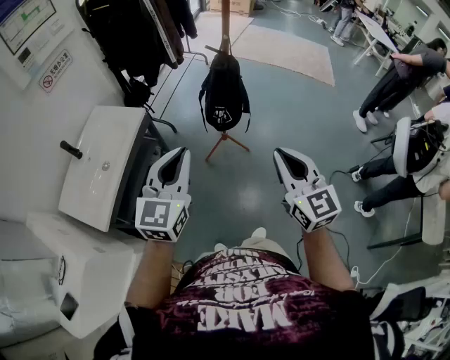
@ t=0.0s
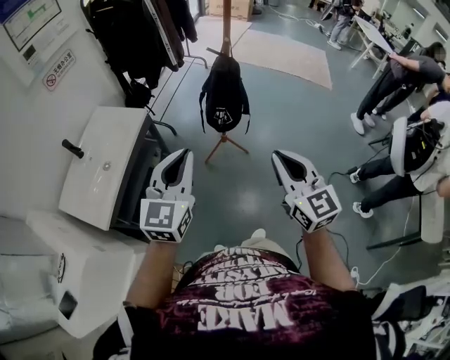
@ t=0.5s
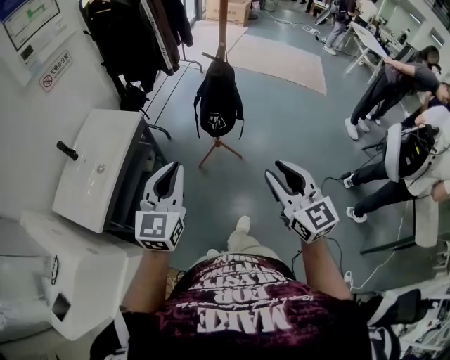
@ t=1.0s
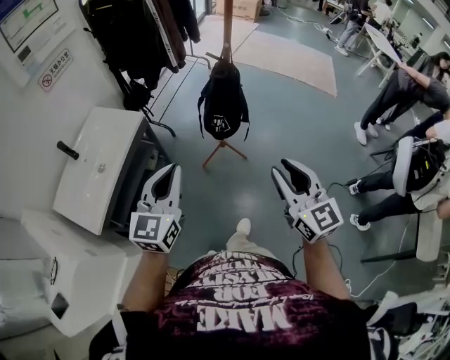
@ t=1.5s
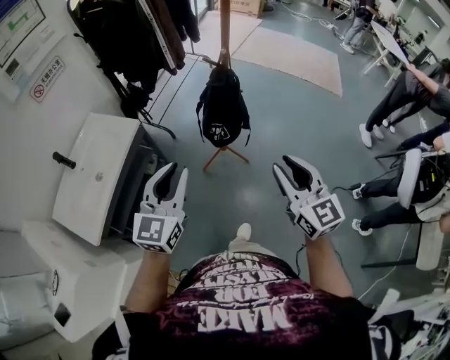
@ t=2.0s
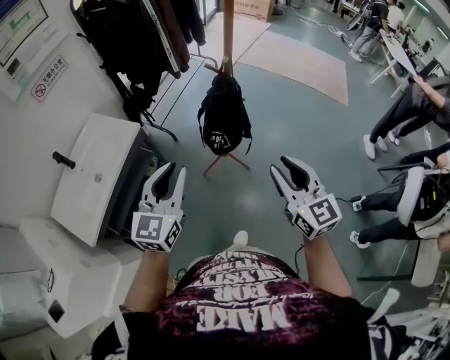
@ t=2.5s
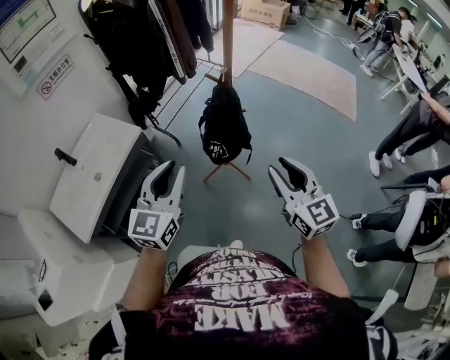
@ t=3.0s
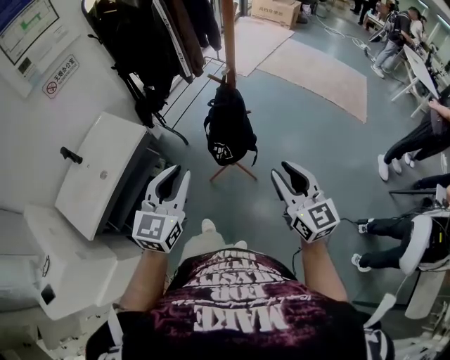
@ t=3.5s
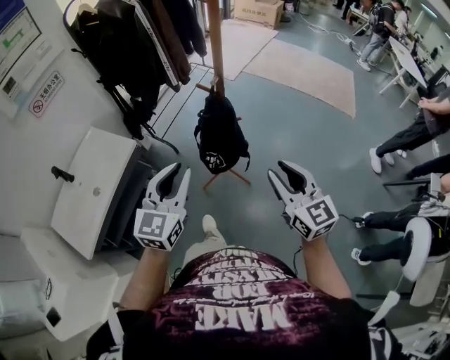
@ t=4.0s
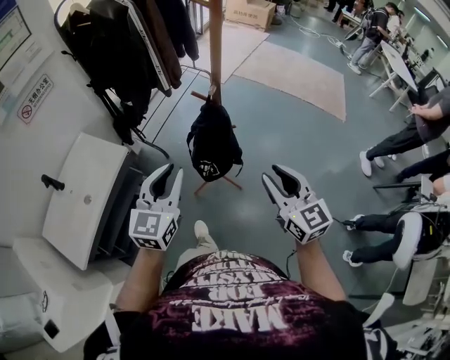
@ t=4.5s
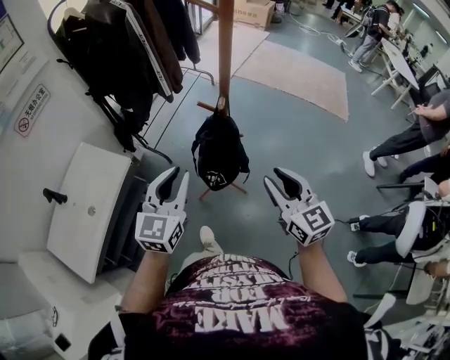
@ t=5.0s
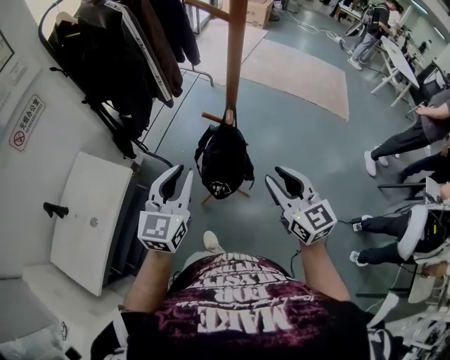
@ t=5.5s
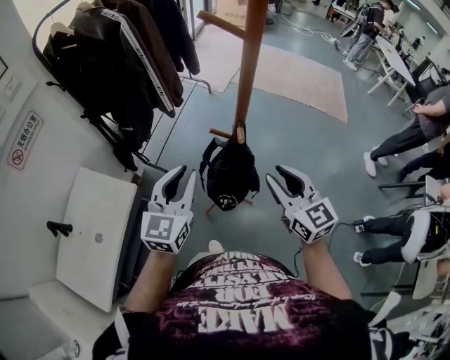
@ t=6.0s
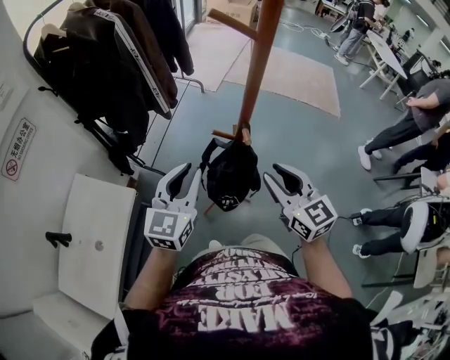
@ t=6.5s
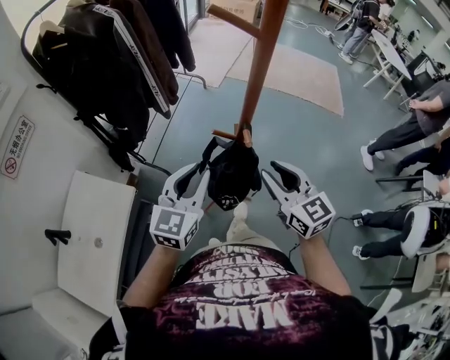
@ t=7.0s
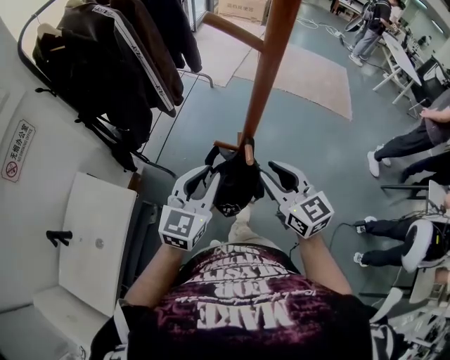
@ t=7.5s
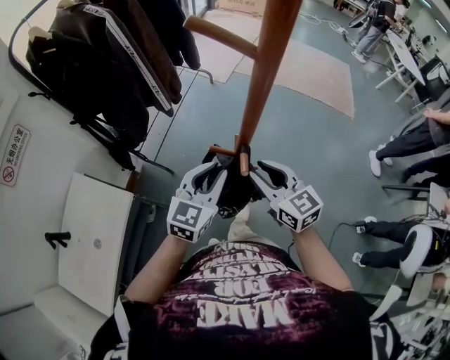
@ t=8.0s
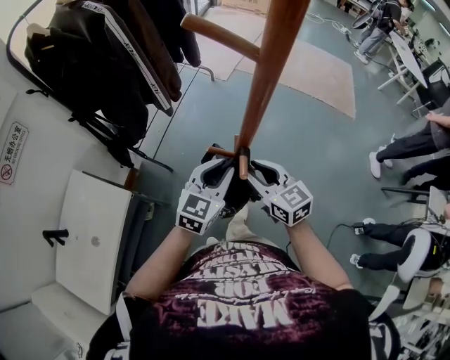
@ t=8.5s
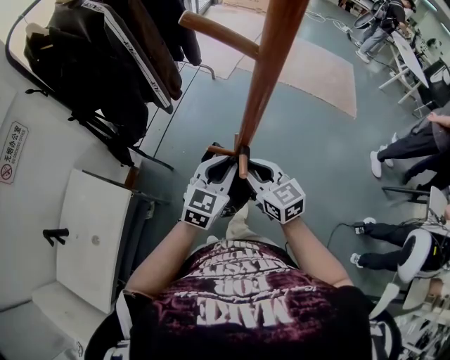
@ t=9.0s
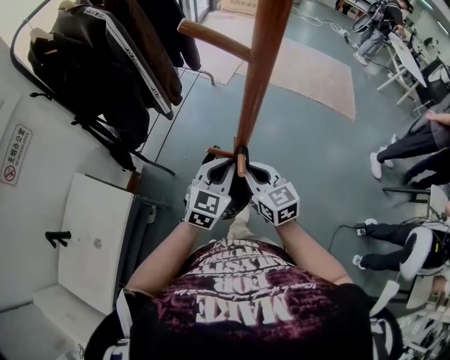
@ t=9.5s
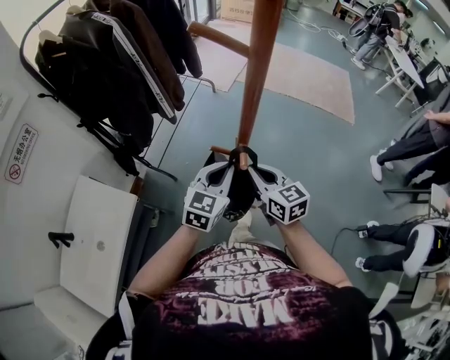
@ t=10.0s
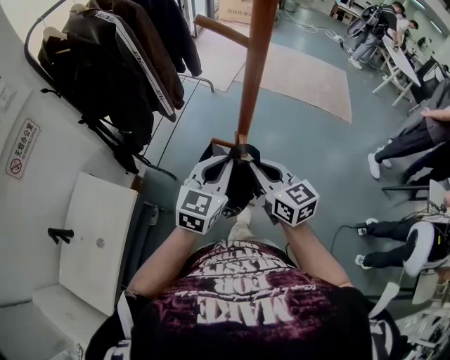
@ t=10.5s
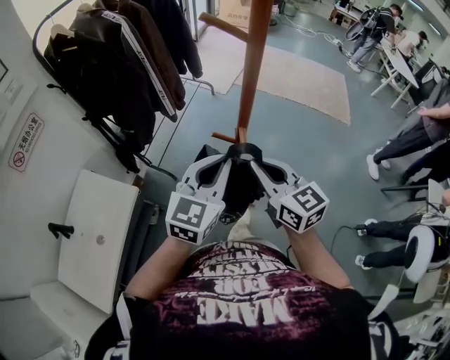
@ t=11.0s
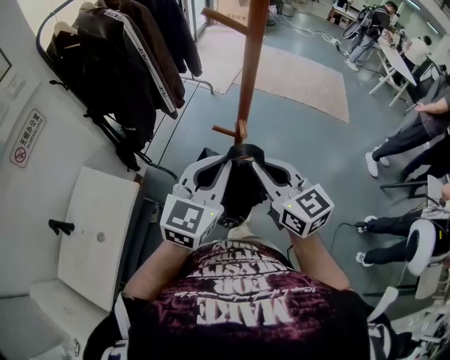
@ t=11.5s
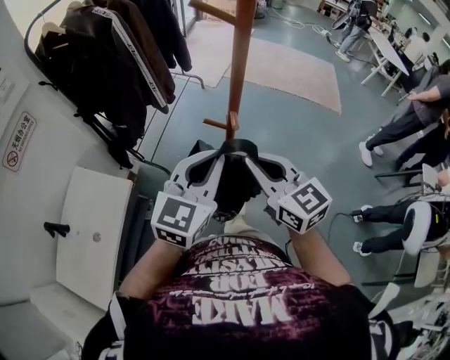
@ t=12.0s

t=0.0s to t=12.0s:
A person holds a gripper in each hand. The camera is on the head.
t=0.0s to t=2.0s: The right gripper shifts approximately 10 cm forward and to the right, and opens its fingers; the left gripper is displaced forward by approximately 10 cm.
t=2.0s to t=4.0s: The two grippers go approximately 15 cm forward and to the right.
t=4.0s to t=6.0s: The left gripper goes approximately 20 cm forward; the right gripper is displaced forward and to the left by some 20 cm.
t=6.0s to t=8.0s: The left gripper travels forward, to the right and downward by roughly 15 cm. The right gripper moves forward and downward, roughly 10 cm.
t=8.0s to t=10.0s: The right gripper closes its fingers.
t=10.0s to t=12.0s: The two grippers go some 20 cm upward and backward.

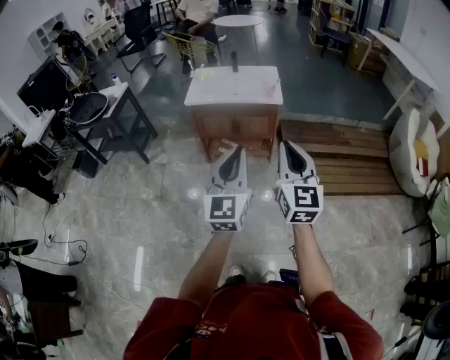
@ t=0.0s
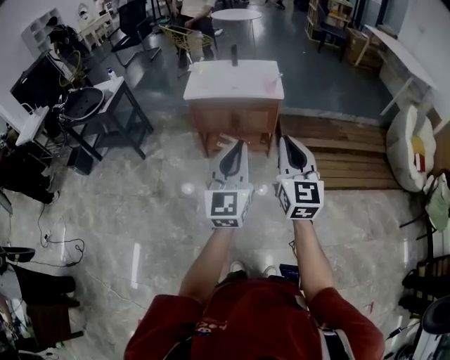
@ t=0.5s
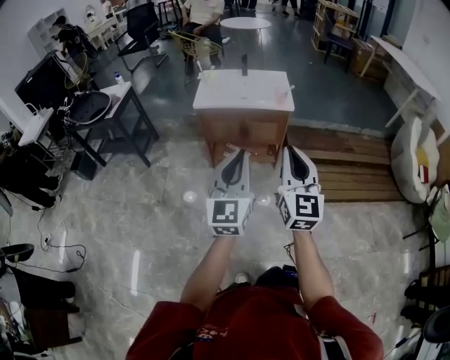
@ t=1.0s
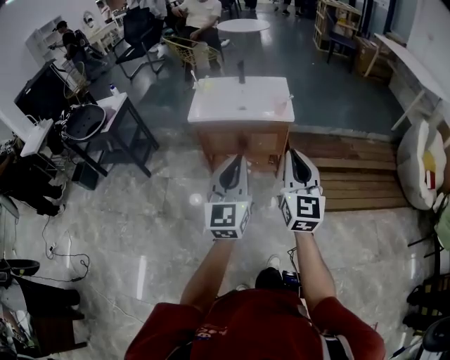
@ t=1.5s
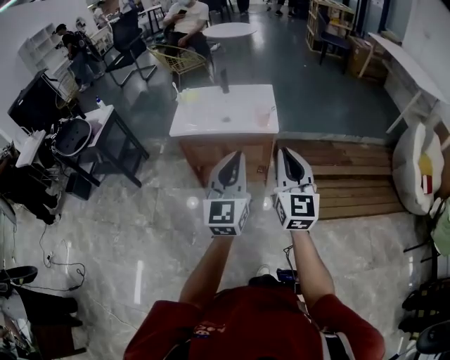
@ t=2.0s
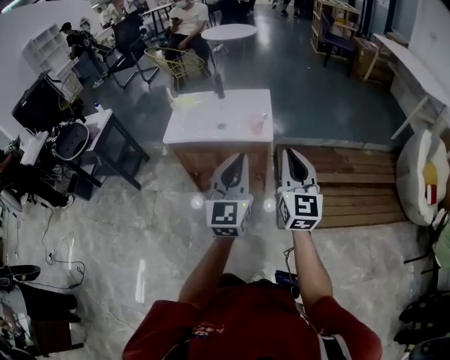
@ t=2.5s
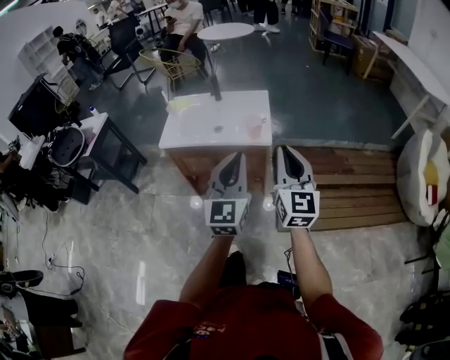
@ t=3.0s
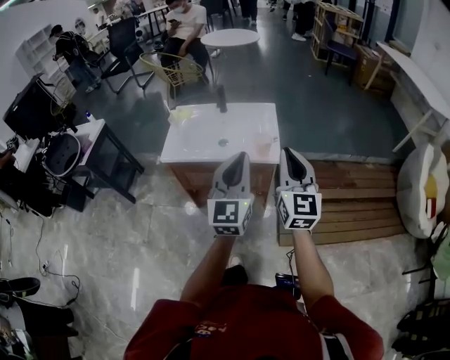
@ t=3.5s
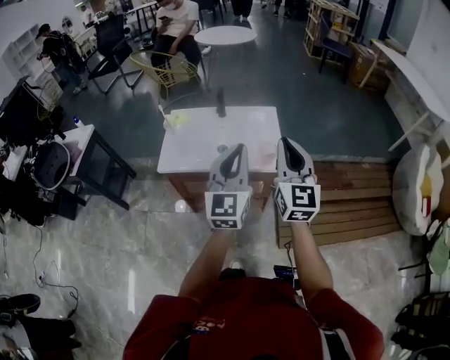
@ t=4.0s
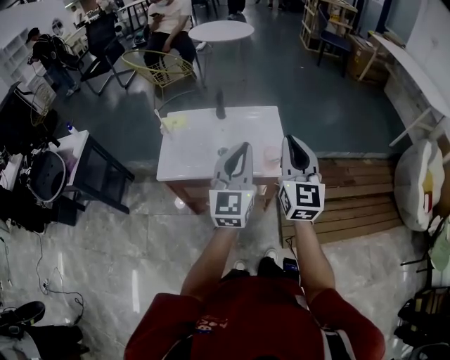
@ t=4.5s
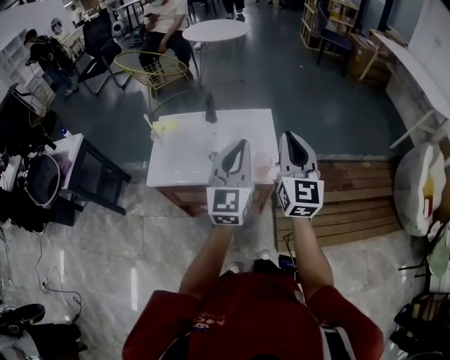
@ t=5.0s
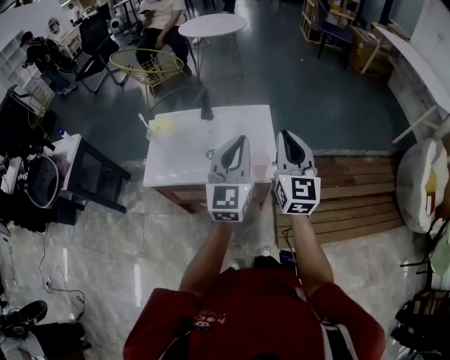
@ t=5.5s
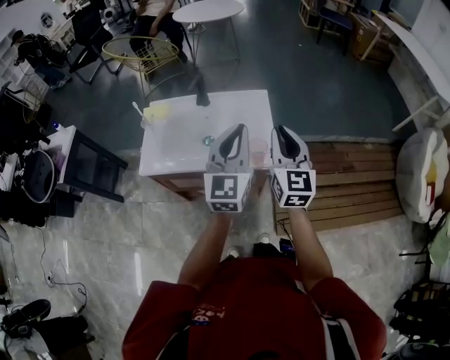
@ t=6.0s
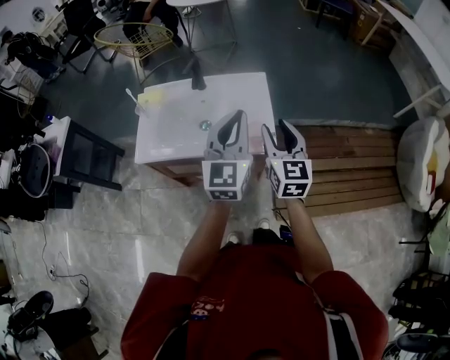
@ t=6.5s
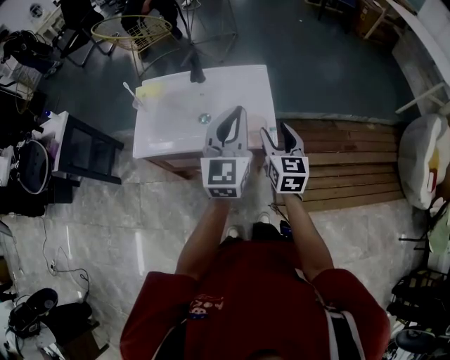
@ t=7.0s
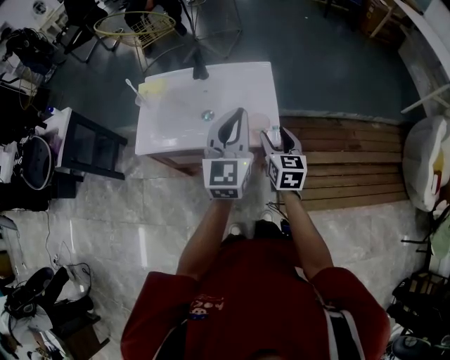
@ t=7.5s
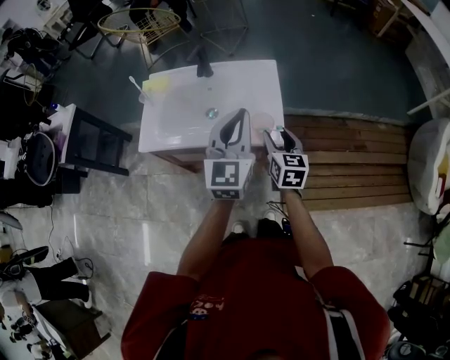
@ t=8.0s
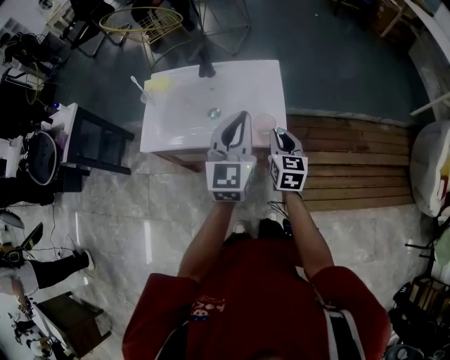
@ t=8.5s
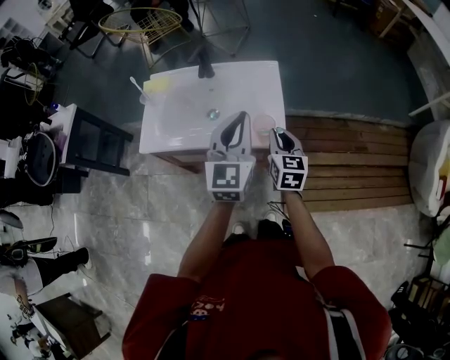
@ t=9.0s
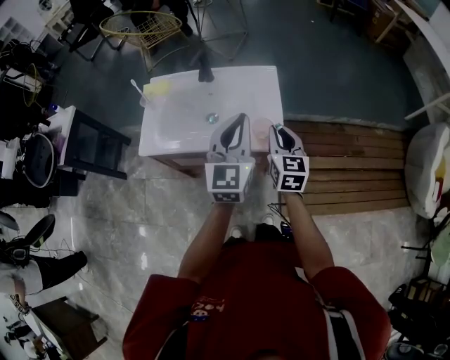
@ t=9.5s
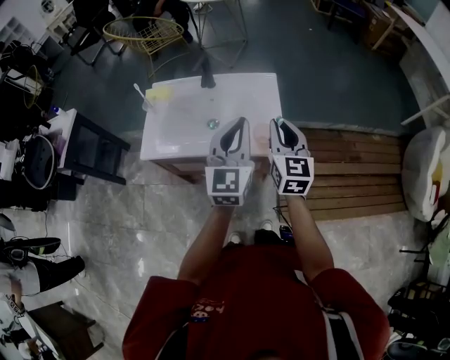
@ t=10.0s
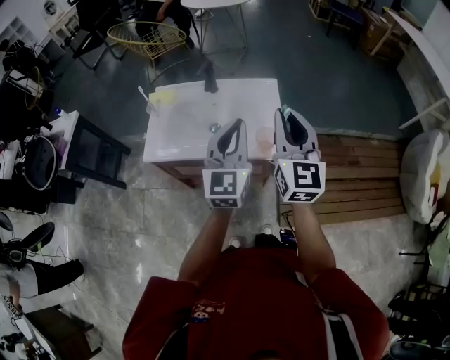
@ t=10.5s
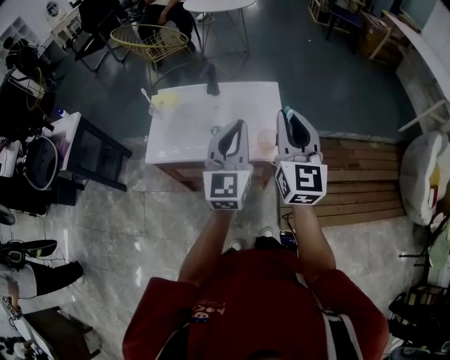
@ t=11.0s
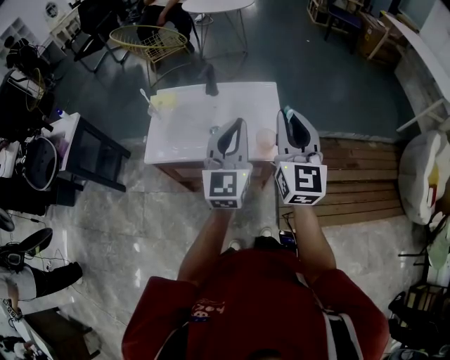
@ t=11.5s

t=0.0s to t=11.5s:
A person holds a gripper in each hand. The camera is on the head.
t=0.0s to t=2.0s: Both grippers travel together forward, approximately 20 cm.
t=2.0s to t=4.0s: The grippers both shift forward by some 25 cm.
t=4.0s to t=6.0s: The right gripper is displaced forward and downward by roughly 15 cm, while the left gripper goes about 15 cm forward and to the right.
t=6.0s to t=7.5s: The right gripper is displaced downward by roughly 15 cm, turns by some 20 degrees, and opens.
t=7.5s to t=9.5s: The right gripper closes.
t=9.5s to t=11.5s: The right gripper shifts about 20 cm upward, and swivels some 30 degrees; the left gripper heads upward, covering approximately 5 cm.

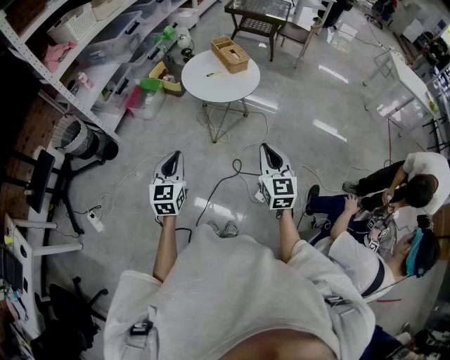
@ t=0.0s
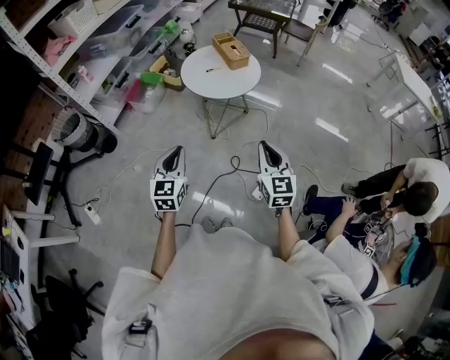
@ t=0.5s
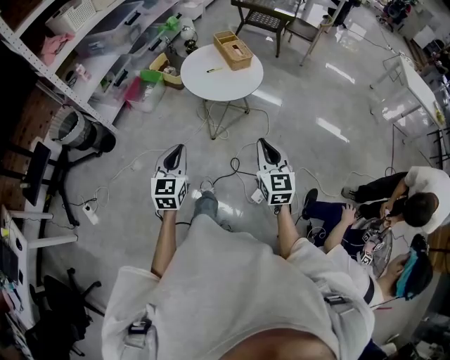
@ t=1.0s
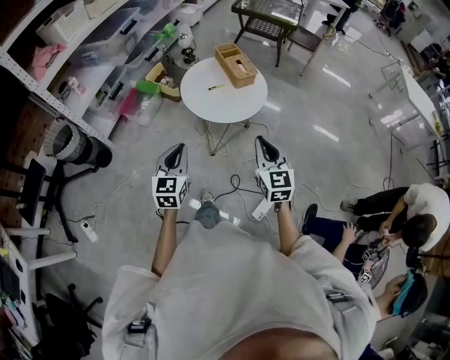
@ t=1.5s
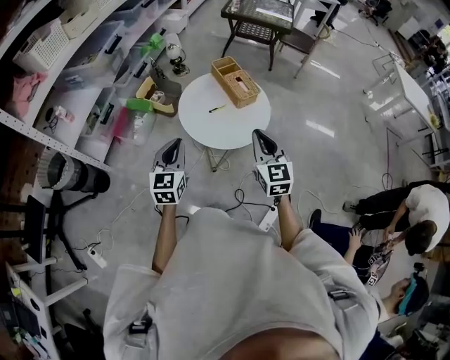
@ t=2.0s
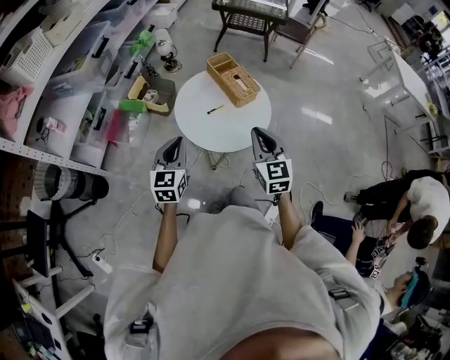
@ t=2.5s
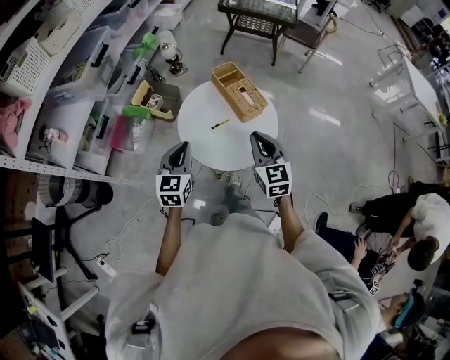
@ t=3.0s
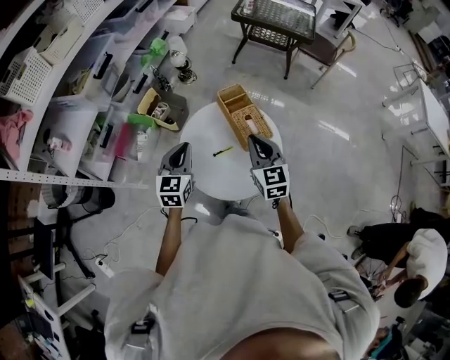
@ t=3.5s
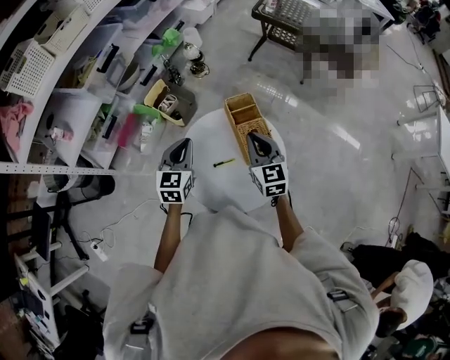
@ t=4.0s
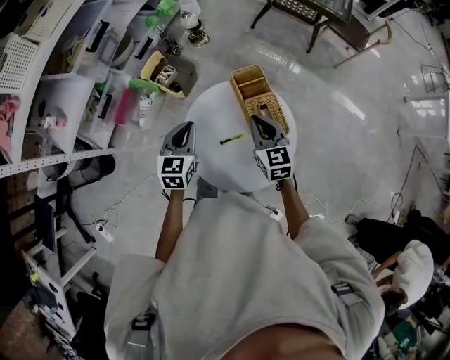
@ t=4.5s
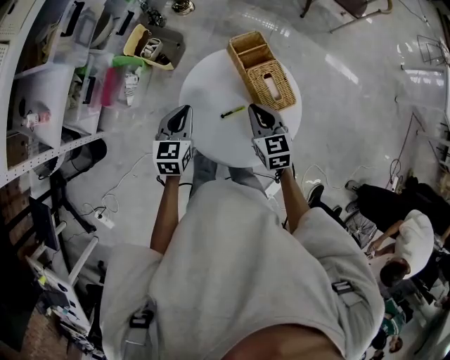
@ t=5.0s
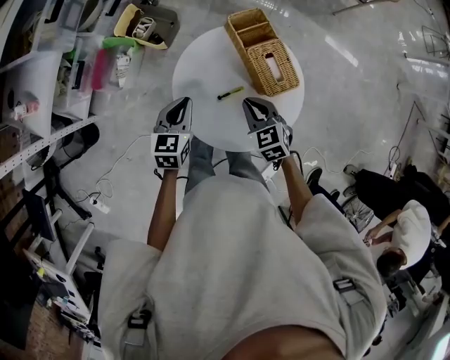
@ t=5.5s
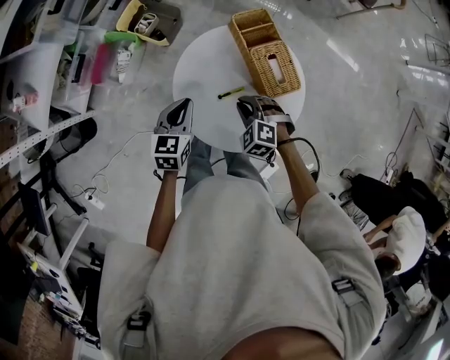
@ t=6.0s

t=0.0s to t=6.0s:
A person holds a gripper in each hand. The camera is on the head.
t=0.0s to t=2.0s: Both grippers travel together forward, approximately 35 cm.
t=2.0s to t=4.0s: Both grippers travel together forward, roughly 30 cm.
t=4.0s to t=6.0s: The left gripper moves downward and backward, some 15 cm, while the right gripper goes approximately 20 cm downward and backward, and tips its fingers downward by about 40 degrees.
